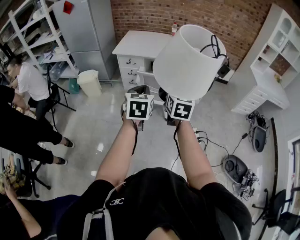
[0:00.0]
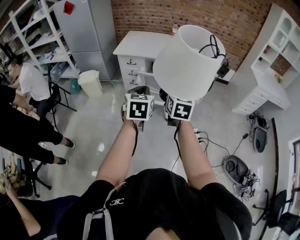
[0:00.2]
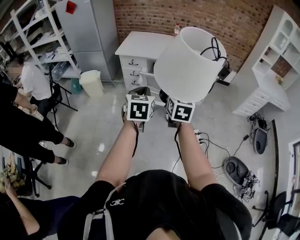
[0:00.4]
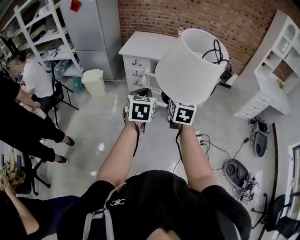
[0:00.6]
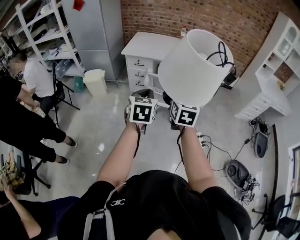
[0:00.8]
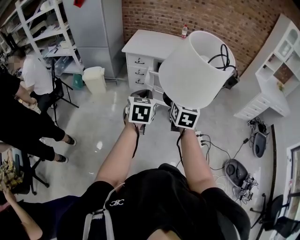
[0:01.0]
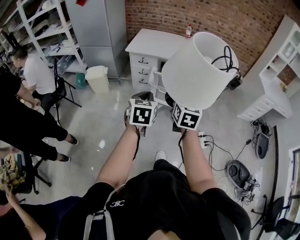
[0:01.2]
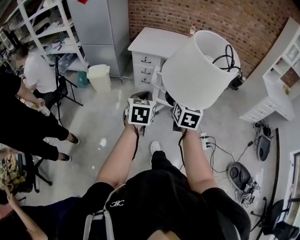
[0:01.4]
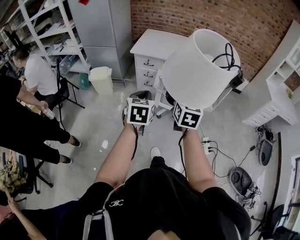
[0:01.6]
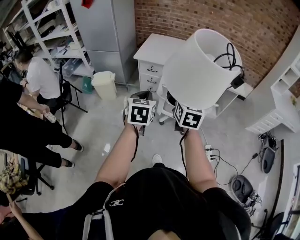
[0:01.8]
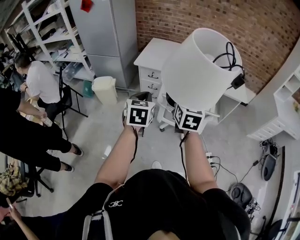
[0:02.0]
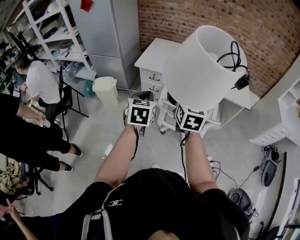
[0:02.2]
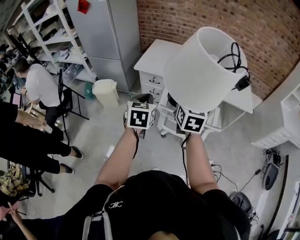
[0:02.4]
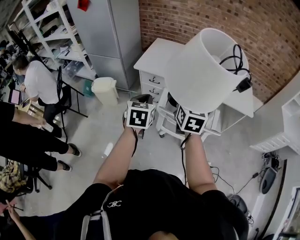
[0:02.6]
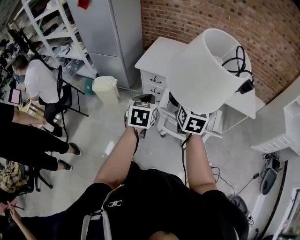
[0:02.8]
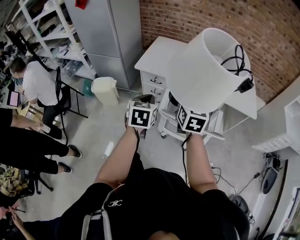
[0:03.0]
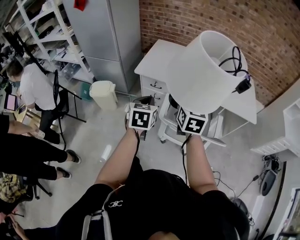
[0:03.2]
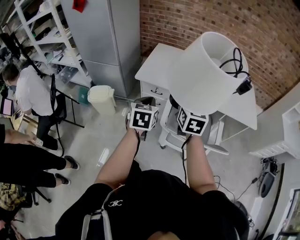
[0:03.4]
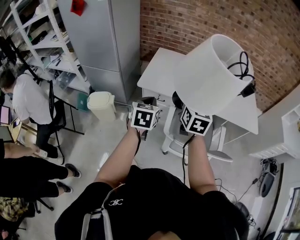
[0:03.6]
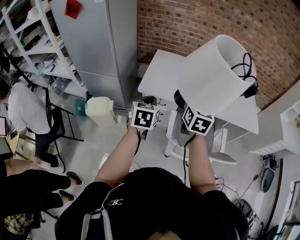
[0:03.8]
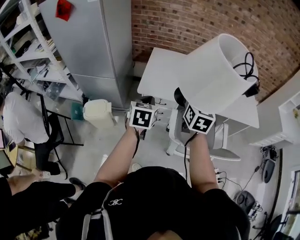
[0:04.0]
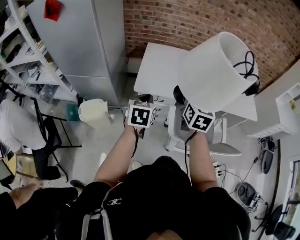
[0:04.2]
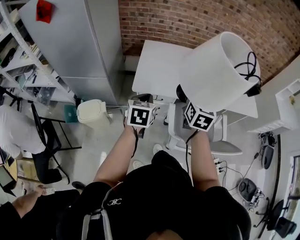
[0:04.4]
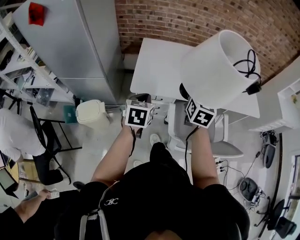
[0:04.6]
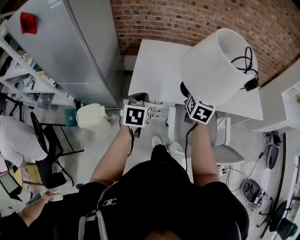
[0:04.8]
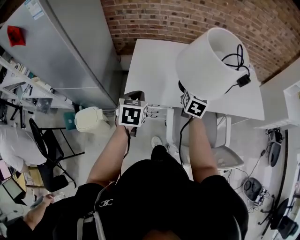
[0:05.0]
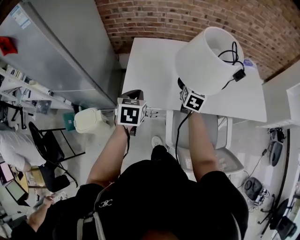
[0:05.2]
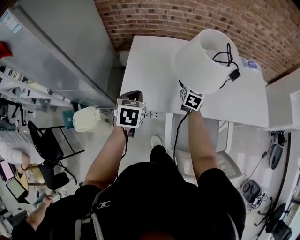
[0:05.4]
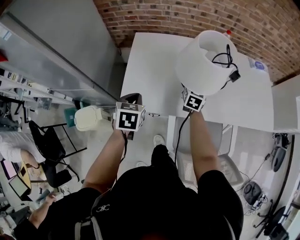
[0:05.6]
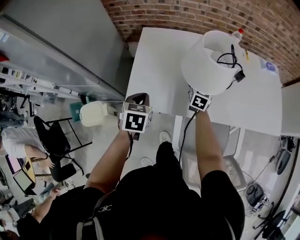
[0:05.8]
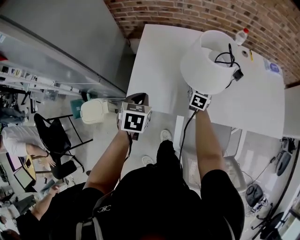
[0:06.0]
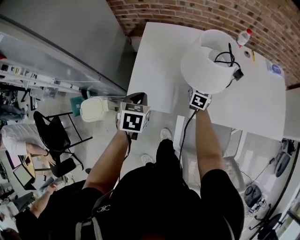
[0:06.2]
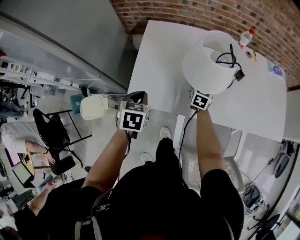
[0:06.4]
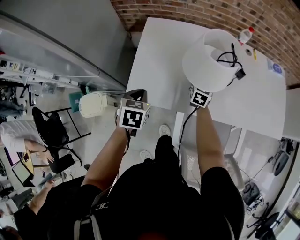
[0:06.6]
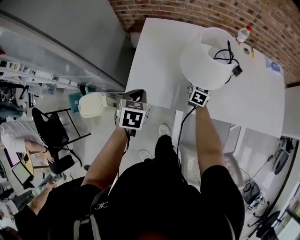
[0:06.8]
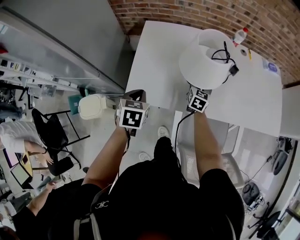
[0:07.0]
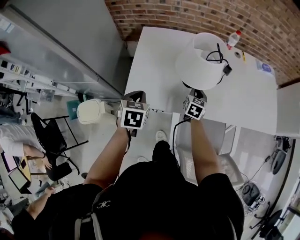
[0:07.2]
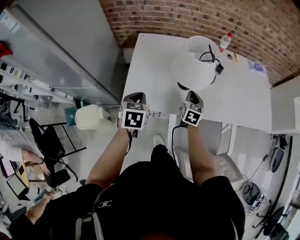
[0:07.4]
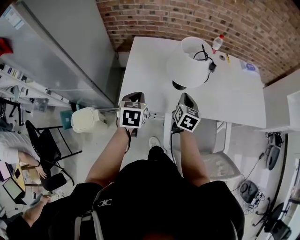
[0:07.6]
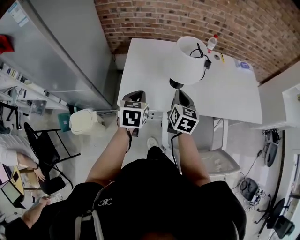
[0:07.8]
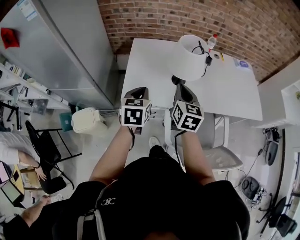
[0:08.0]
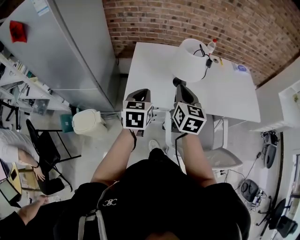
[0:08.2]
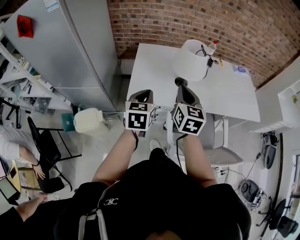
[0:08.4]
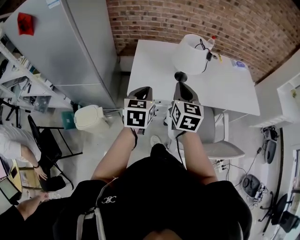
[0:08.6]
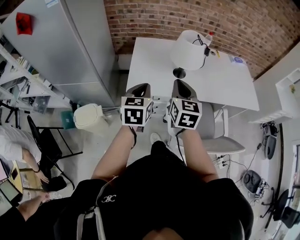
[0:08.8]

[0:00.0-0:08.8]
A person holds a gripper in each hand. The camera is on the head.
0:00.0 to 0:01.4: The two grippers go approximately 10 cm to the left.
0:01.4 to 0:03.0: Both grippers move forward, approximately 30 cm.
0:03.0 to 0:04.4: The grippers both shift forward and to the left by some 30 cm. The right gripper changes its angle by roughly 20 degrees.
0:04.4 to 0:05.8: The left gripper is displaced forward and downward by approximately 25 cm. The right gripper is displaced forward and downward by some 40 cm.
0:05.8 to 0:07.4: The right gripper shifts about 10 cm backward, and closes.
0:07.4 to 0:08.8: The right gripper is displaced upward, backward and to the left by about 30 cm. The left gripper heads backward and upward, covering approximately 20 cm, and changes its angle by approximately 20 degrees.

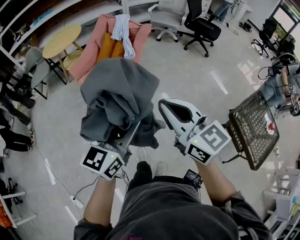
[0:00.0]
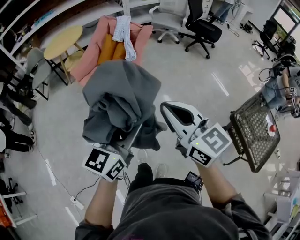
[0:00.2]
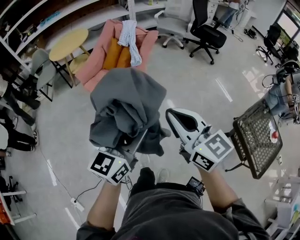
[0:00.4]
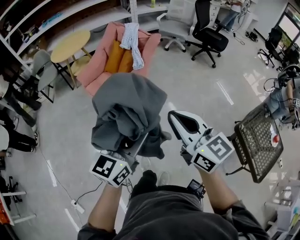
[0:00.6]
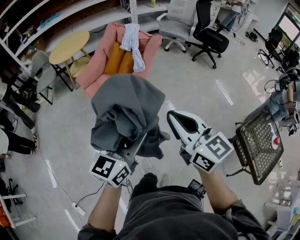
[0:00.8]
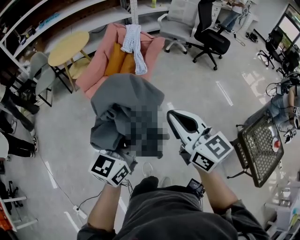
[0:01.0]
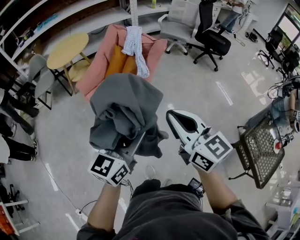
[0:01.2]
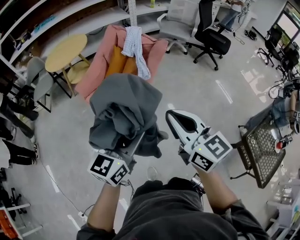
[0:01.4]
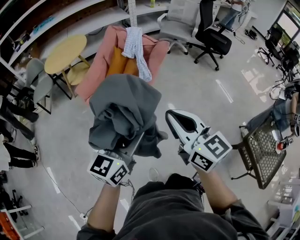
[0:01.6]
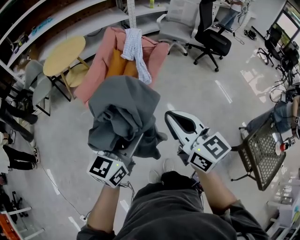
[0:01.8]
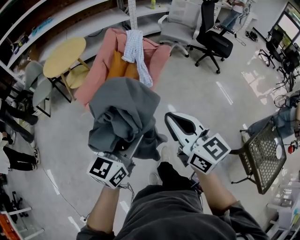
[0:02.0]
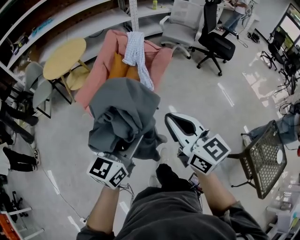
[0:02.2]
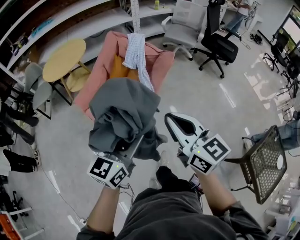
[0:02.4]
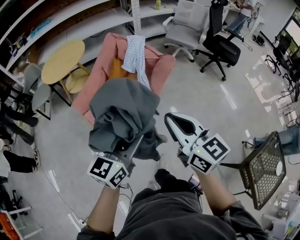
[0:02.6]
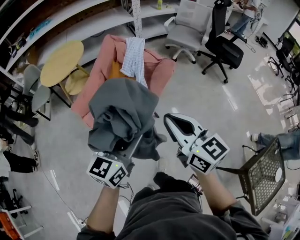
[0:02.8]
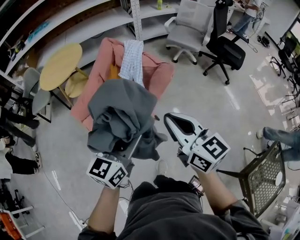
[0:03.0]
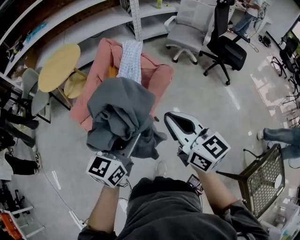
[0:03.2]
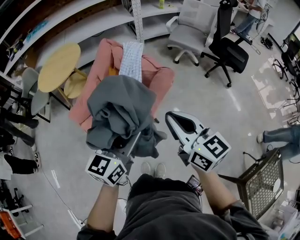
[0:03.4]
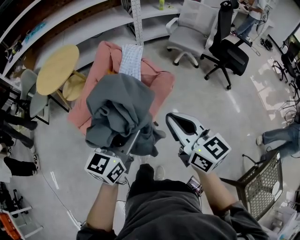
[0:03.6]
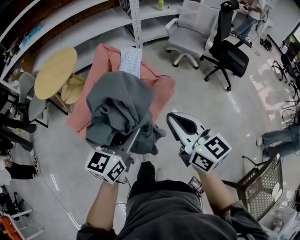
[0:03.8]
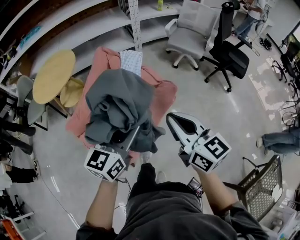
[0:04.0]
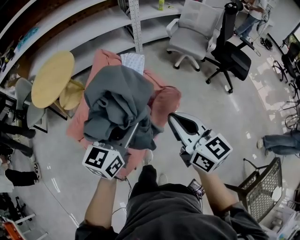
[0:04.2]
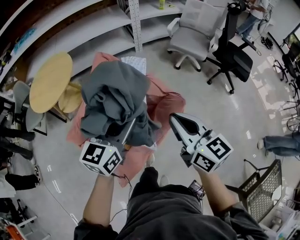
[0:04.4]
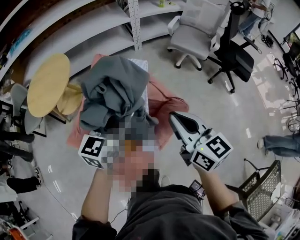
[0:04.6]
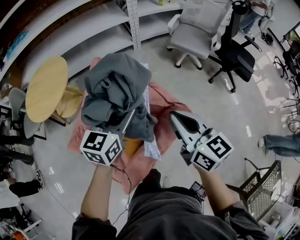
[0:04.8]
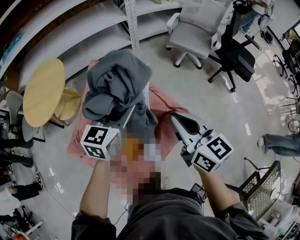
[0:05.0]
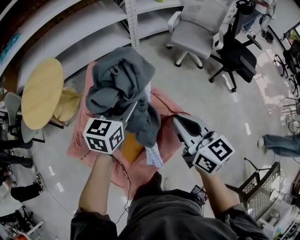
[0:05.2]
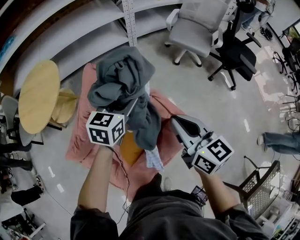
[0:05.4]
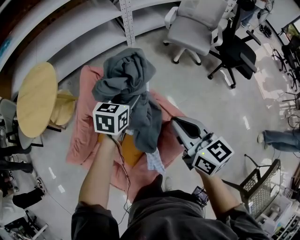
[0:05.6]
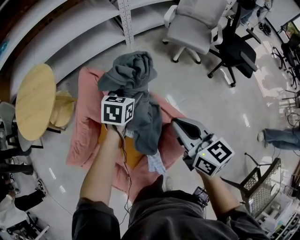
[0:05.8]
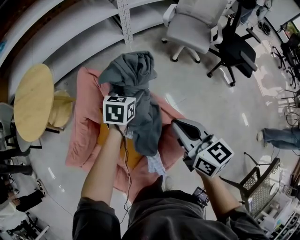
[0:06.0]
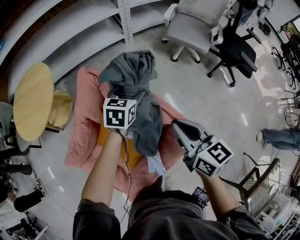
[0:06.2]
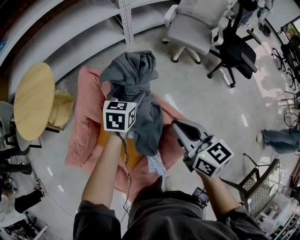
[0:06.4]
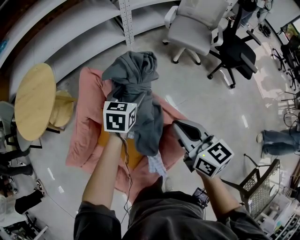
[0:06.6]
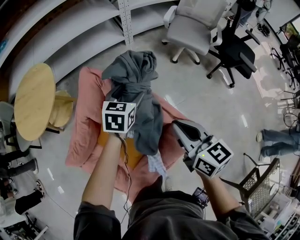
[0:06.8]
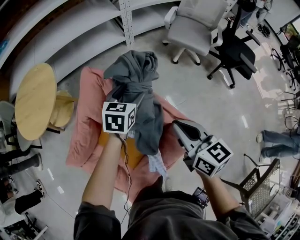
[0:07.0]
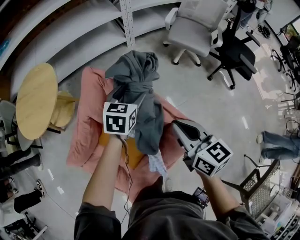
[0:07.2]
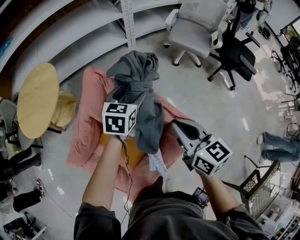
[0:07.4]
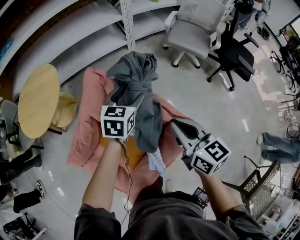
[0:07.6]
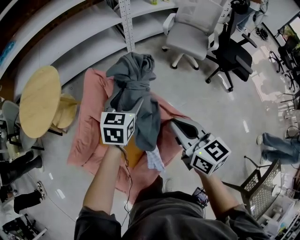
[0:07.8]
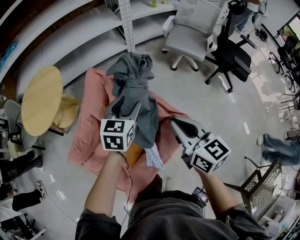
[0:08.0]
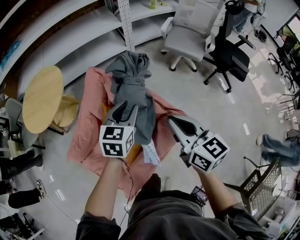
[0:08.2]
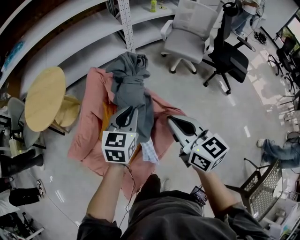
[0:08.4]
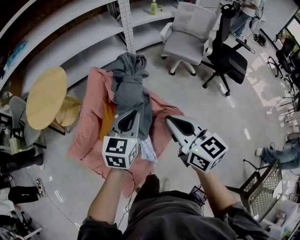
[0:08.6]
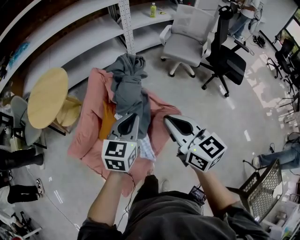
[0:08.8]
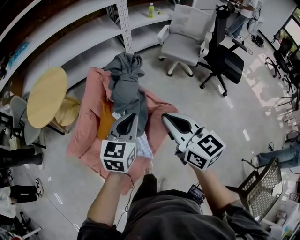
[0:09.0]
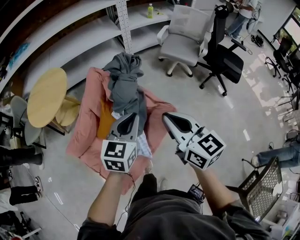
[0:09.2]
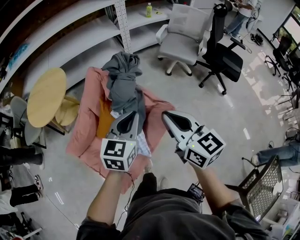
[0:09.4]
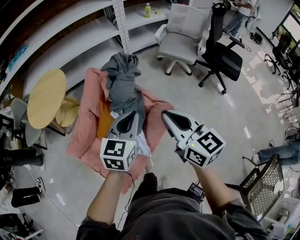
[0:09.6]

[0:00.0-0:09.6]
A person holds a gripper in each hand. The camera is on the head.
0:00.0 to 0:01.6: The left gripper is displaced forward and to the left by approximately 20 cm. Meanwhile the right gripper is displaced forward by about 20 cm.
0:01.6 to 0:03.2: The two grippers go about 30 cm forward.
0:03.2 to 0:04.8: Both grippers travel together forward, about 35 cm.
0:04.8 to 0:06.4: The right gripper is displaced forward and downward by roughly 15 cm; the left gripper moves forward and downward, about 25 cm, and changes its angle by roughly 20 degrees.
0:06.4 to 0:08.0: The right gripper moves backward and upward, some 10 cm. Meanwhile the left gripper goes approximately 15 cm backward and upward.
0:08.0 to 0:09.6: The left gripper is displaced backward and upward by roughly 20 cm, and closes its fingers; the right gripper moves backward and upward, roughly 15 cm.

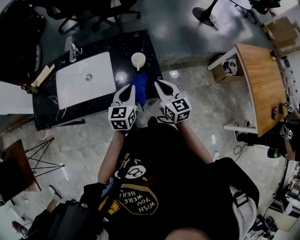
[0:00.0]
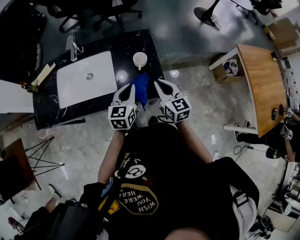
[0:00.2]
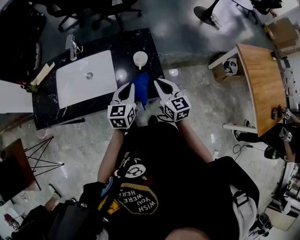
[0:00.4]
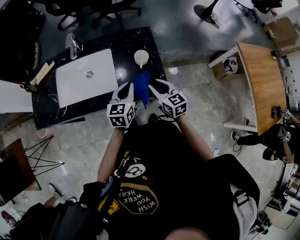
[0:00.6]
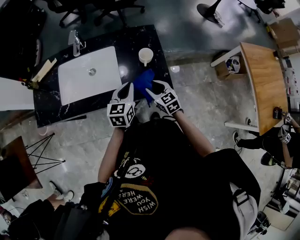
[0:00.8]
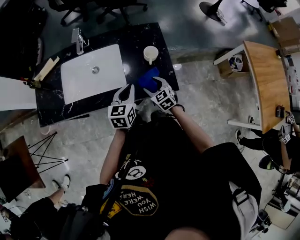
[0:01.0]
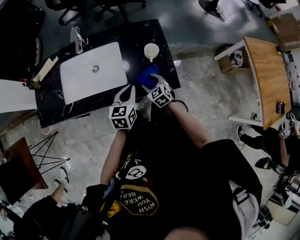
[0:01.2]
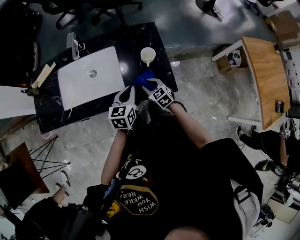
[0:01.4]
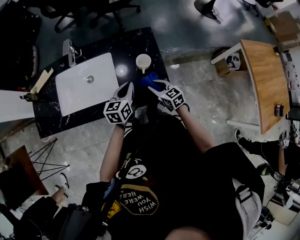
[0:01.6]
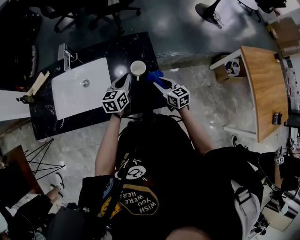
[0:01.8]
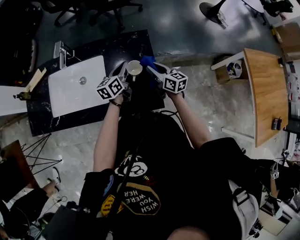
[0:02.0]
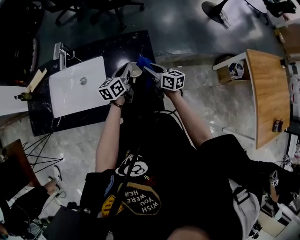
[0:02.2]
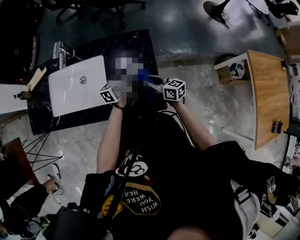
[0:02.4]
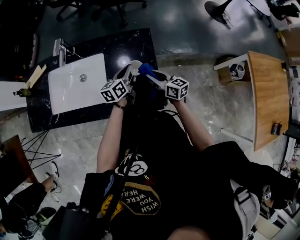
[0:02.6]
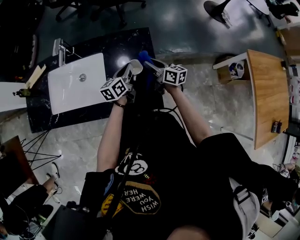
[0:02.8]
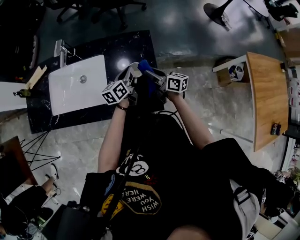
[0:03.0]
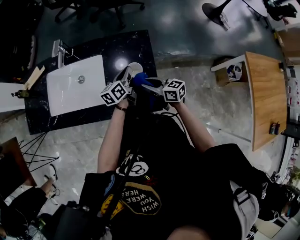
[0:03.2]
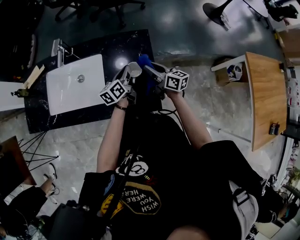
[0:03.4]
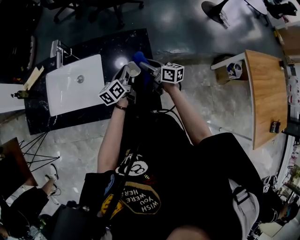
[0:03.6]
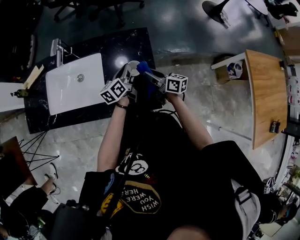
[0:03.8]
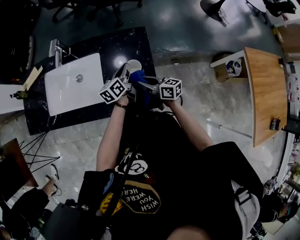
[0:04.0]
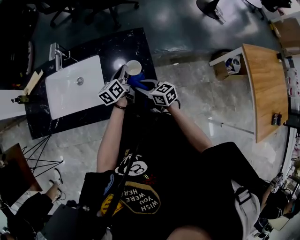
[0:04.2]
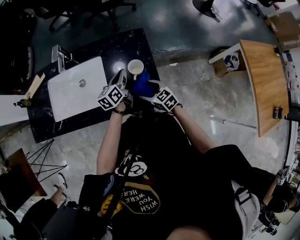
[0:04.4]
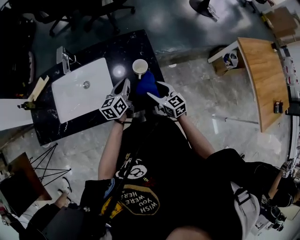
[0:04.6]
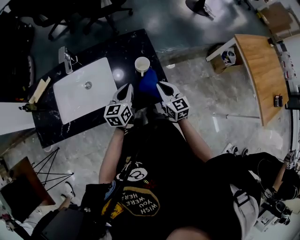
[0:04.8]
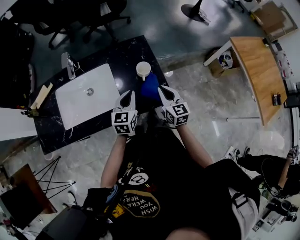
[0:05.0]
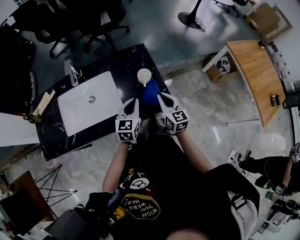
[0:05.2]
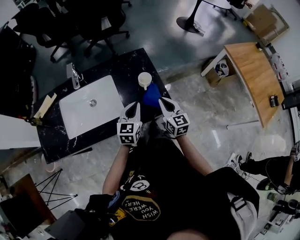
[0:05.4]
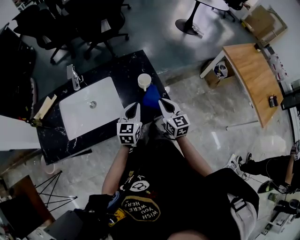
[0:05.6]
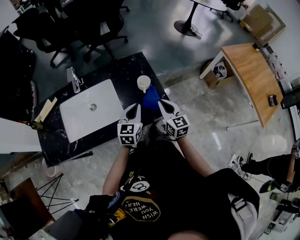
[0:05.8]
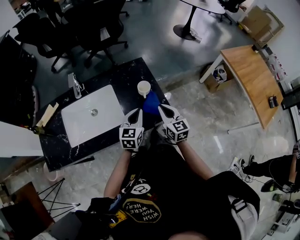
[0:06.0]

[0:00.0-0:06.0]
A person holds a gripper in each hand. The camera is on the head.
0:00.0 to 0:01.6: The left gripper heads forward and downward, covering about 10 cm. Meanwhile the right gripper moves downward, some 15 cm, changes its angle by approximately 20 degrees, and opens, then closes again.
0:01.6 to 0:03.0: The left gripper shifts roughly 15 cm forward and to the right, and changes its angle by approximately 20 degrees, while the right gripper goes forward and backward, about 15 cm each way, reversing 2 times, and changes its angle by some 40 degrees.
0:03.0 to 0:04.4: The right gripper swings forward and backward, some 15 cm each way, with 2 reversals, rotates approximately 40 degrees, and opens its fingers.
0:04.4 to 0:06.0: The right gripper is displaced upward by about 15 cm, rotates some 40 degrees, and closes; the left gripper moves some 15 cm, and turns by about 40 degrees.
